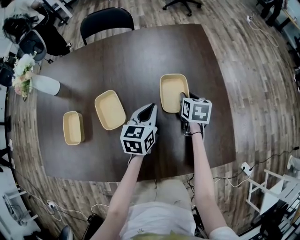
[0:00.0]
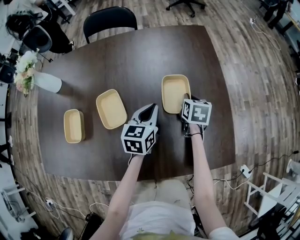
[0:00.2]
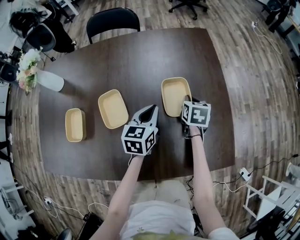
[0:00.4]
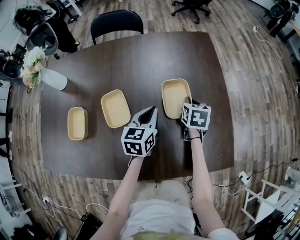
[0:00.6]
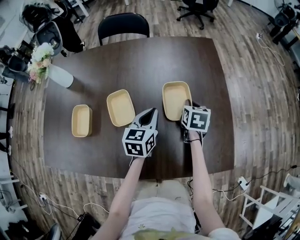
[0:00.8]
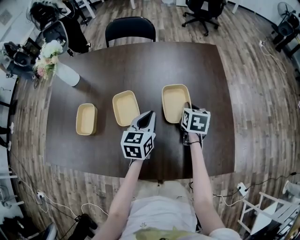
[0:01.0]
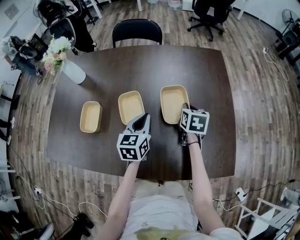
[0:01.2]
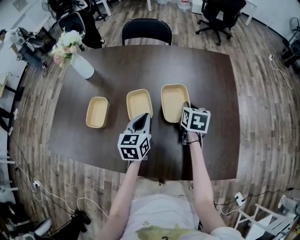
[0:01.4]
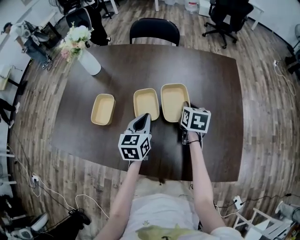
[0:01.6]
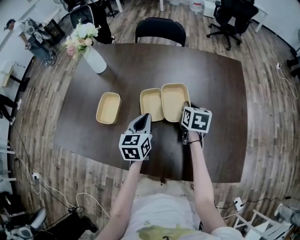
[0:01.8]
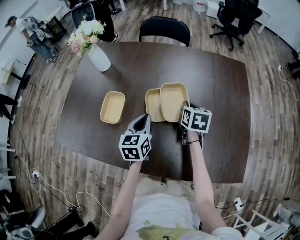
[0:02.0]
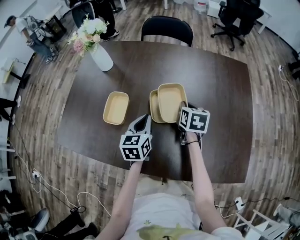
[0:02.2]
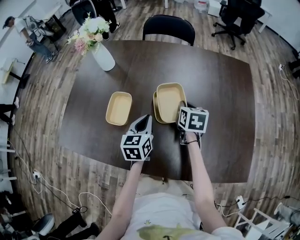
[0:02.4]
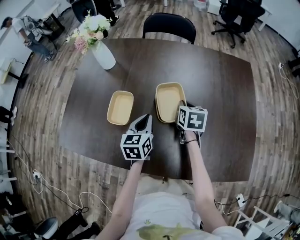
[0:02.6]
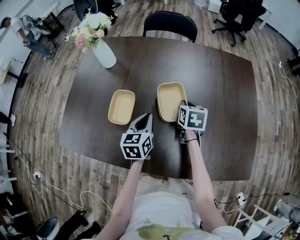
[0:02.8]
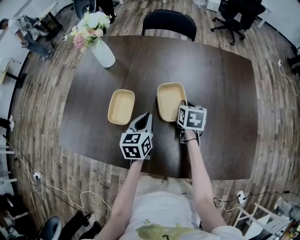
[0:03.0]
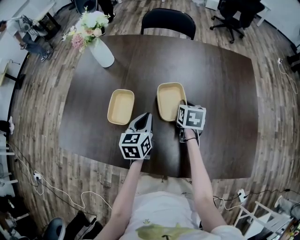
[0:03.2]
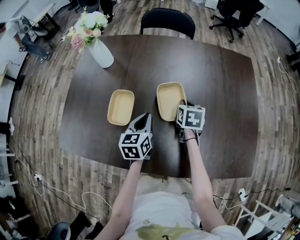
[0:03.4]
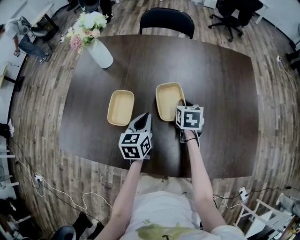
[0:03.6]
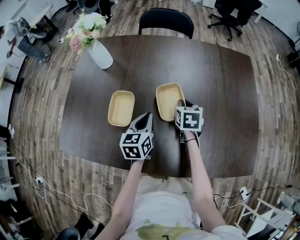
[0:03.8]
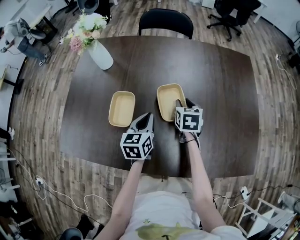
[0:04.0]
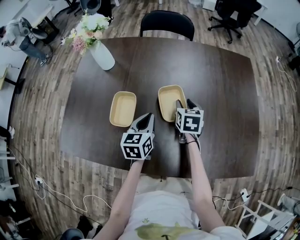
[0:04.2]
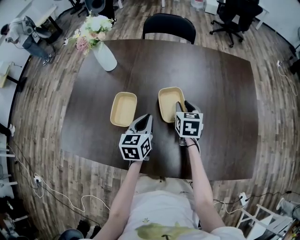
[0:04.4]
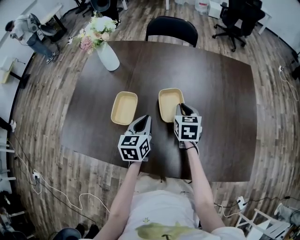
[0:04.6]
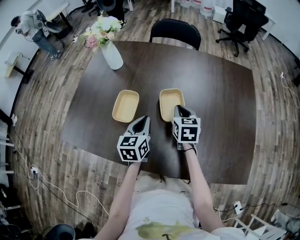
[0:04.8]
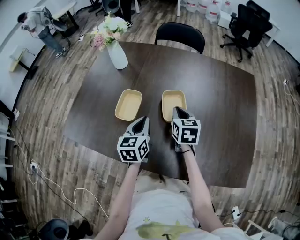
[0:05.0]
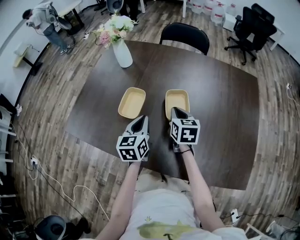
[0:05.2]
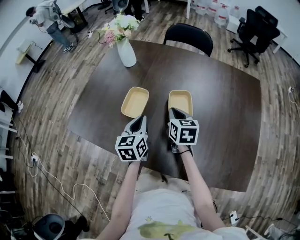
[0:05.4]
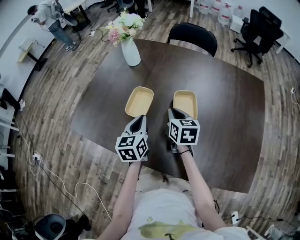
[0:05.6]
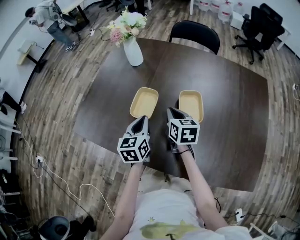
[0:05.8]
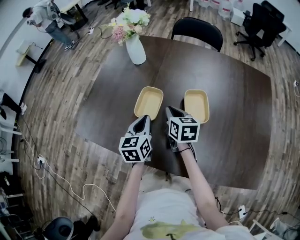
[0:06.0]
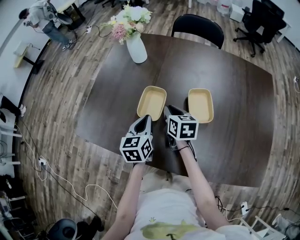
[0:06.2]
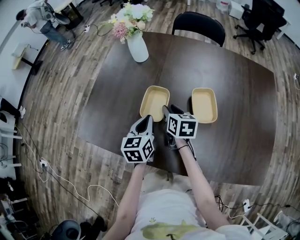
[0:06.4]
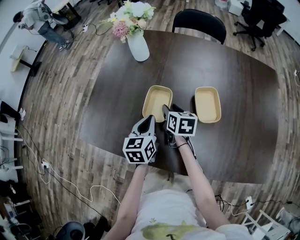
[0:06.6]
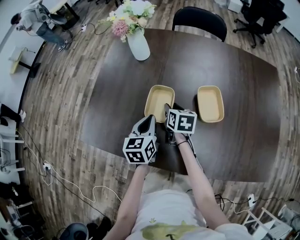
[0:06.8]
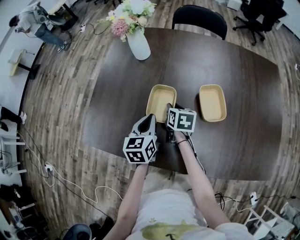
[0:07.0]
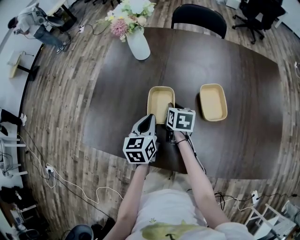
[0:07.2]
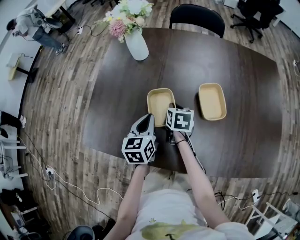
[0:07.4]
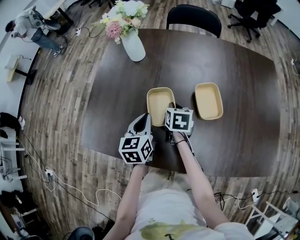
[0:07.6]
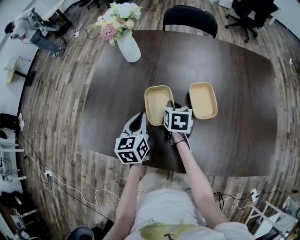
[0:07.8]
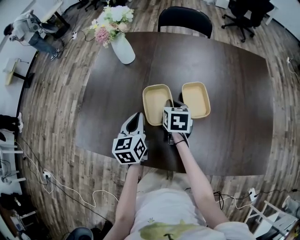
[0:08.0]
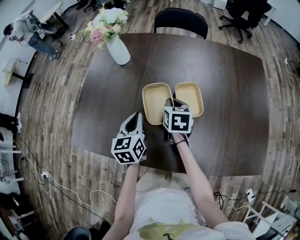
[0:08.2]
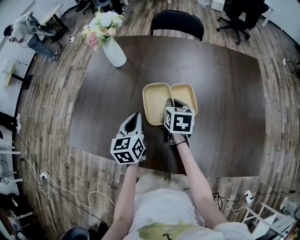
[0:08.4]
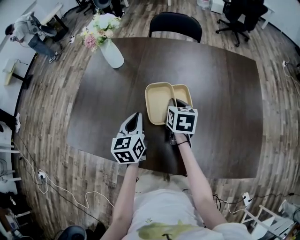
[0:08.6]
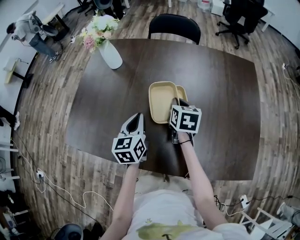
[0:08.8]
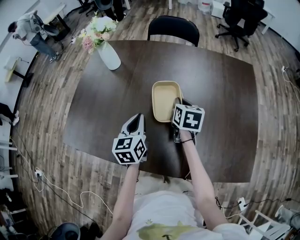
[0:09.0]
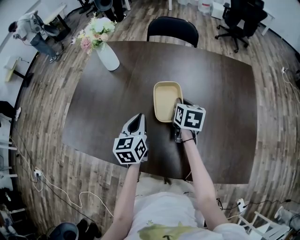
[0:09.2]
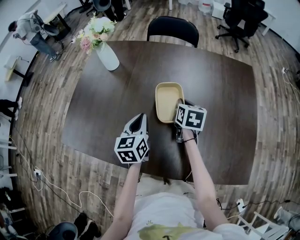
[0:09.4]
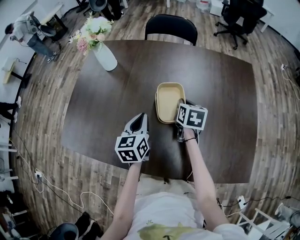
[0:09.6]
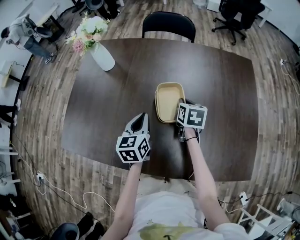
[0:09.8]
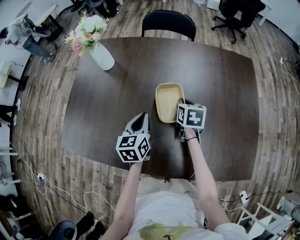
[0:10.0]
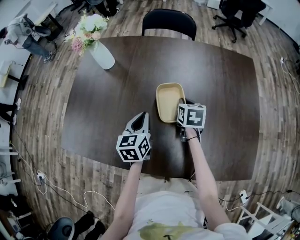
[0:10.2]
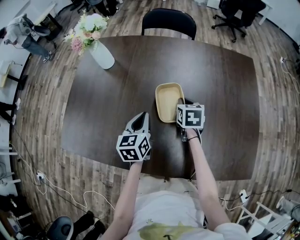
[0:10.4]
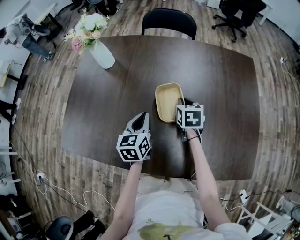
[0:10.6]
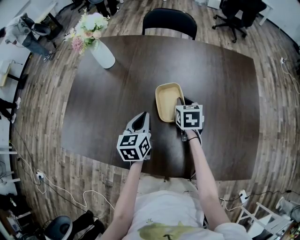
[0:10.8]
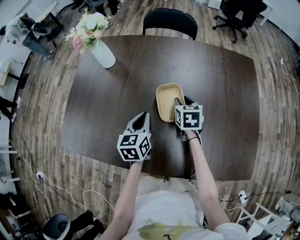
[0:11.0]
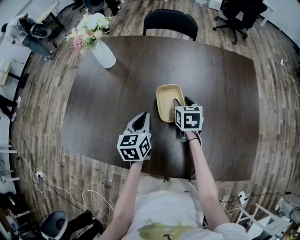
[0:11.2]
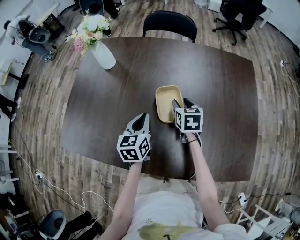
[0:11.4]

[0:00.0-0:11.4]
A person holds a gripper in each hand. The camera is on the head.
0:00.0 to 0:01.4: The left gripper travels to the left and backward by some 15 cm. The right gripper goes some 15 cm to the left and upward, and closes its fingers.
0:01.4 to 0:02.8: The two grippers go some 15 cm to the left.
0:02.8 to 0:04.2: The right gripper opens its fingers.
0:04.2 to 0:05.6: The right gripper moves to the left and upward, about 15 cm, turns by roughly 20 degrees, and closes up, while the left gripper heads to the left, covering about 10 cm.
0:05.6 to 0:07.2: The right gripper shifts some 15 cm downward, to the left and forward, and opens and closes again, while the left gripper heads to the left, covering some 5 cm.
0:07.2 to 0:08.6: The left gripper goes roughly 10 cm to the right, while the right gripper travels to the right and upward by some 15 cm.
0:08.6 to 0:10.0: The grippers both shift to the right by some 5 cm.
0:10.0 to 0:11.4: The right gripper opens.

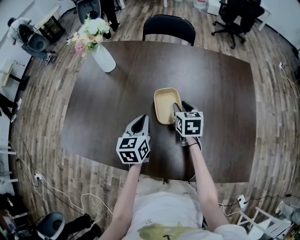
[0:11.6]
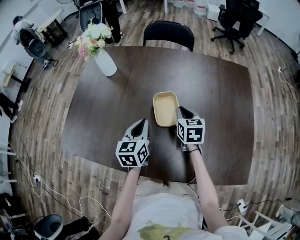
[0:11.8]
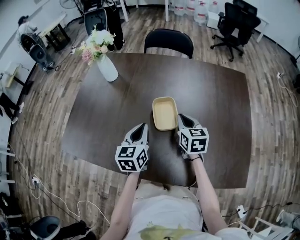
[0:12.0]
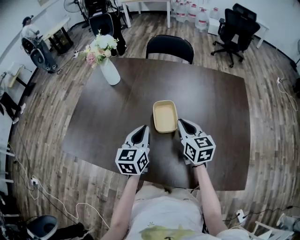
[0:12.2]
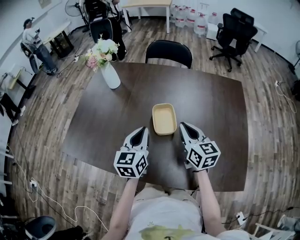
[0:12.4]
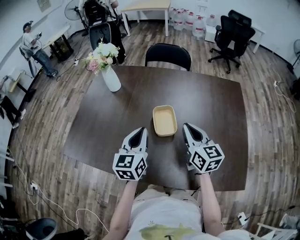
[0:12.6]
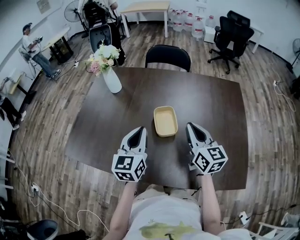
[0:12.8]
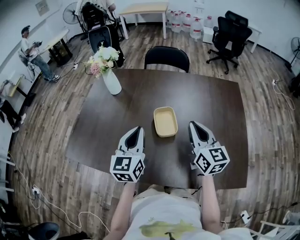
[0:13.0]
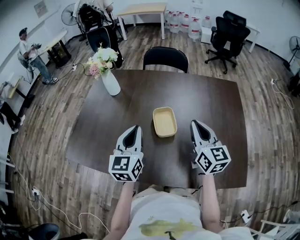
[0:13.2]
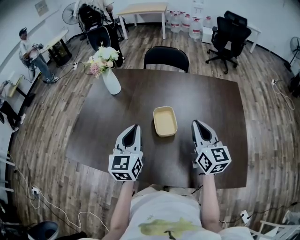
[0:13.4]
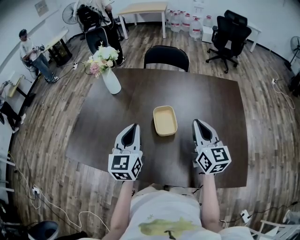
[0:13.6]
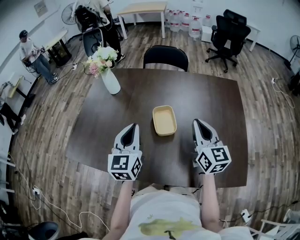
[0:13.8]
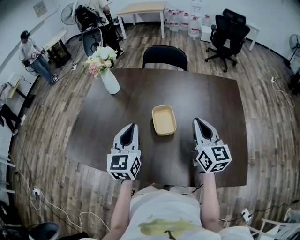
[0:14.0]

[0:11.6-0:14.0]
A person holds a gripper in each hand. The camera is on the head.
0:11.6 to 0:12.8: The left gripper travels upward by roughly 15 cm, while the right gripper shifts some 20 cm upward and backward, points its fingers roughly 30 degrees further upward, and closes its fingers.
0:12.8 to 0:14.0: There are only small adjustments of the grippers.

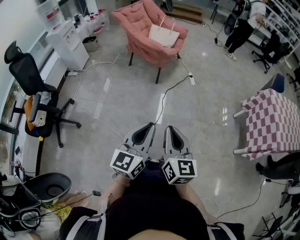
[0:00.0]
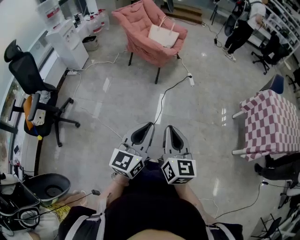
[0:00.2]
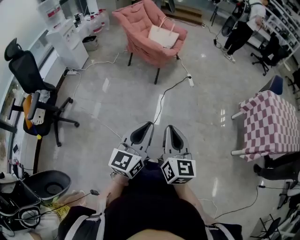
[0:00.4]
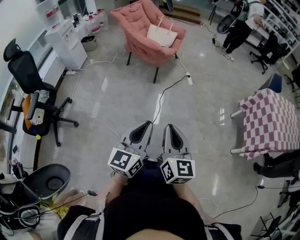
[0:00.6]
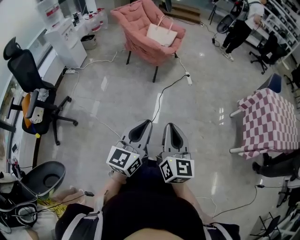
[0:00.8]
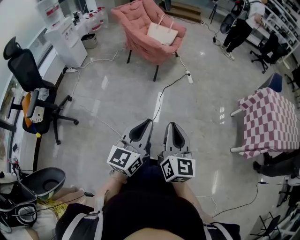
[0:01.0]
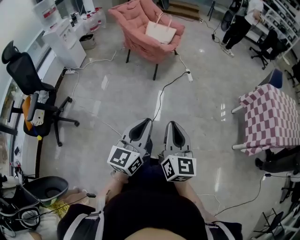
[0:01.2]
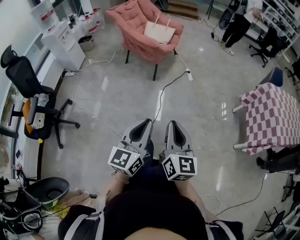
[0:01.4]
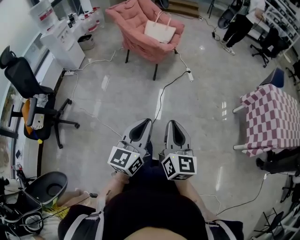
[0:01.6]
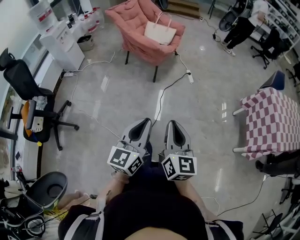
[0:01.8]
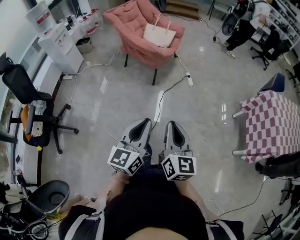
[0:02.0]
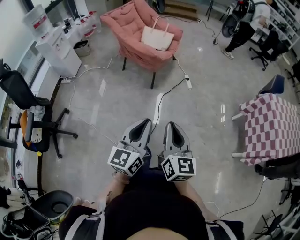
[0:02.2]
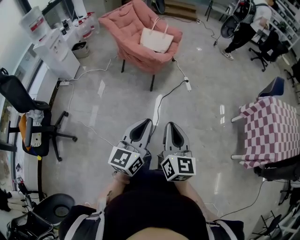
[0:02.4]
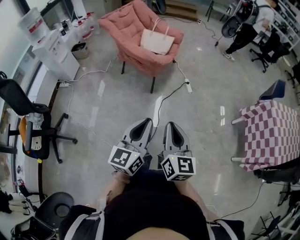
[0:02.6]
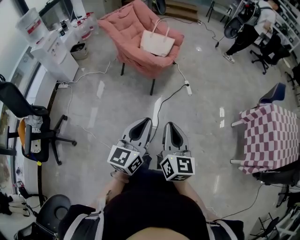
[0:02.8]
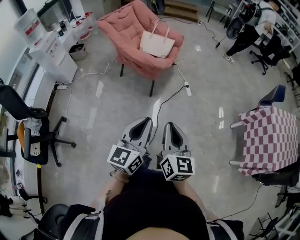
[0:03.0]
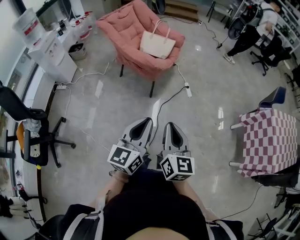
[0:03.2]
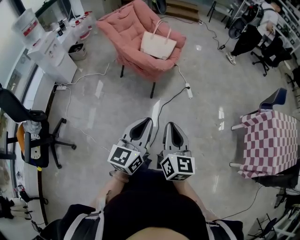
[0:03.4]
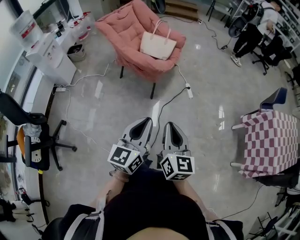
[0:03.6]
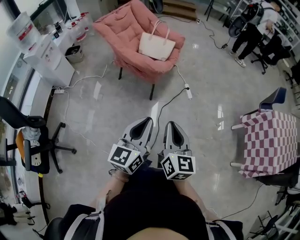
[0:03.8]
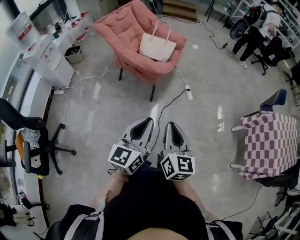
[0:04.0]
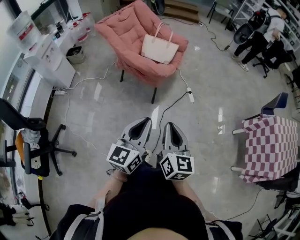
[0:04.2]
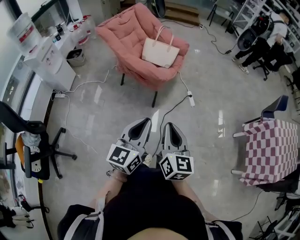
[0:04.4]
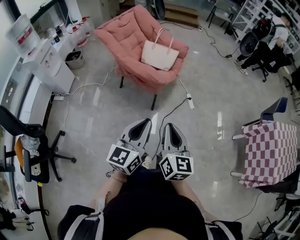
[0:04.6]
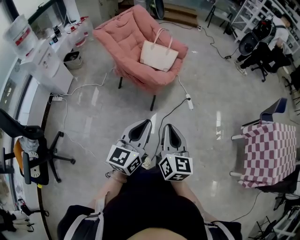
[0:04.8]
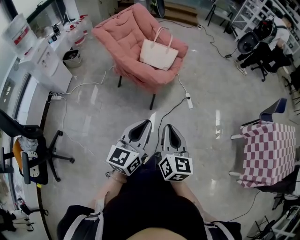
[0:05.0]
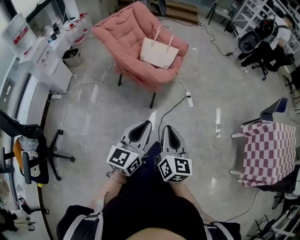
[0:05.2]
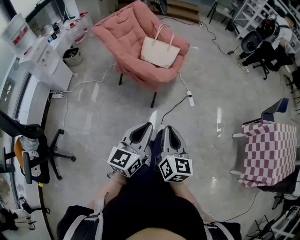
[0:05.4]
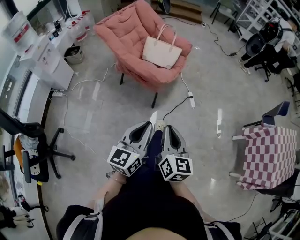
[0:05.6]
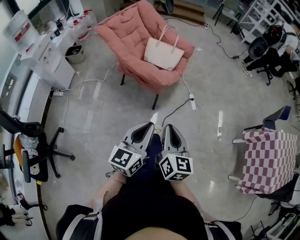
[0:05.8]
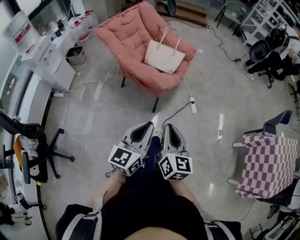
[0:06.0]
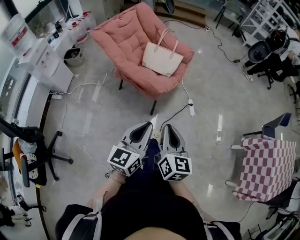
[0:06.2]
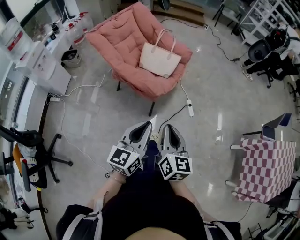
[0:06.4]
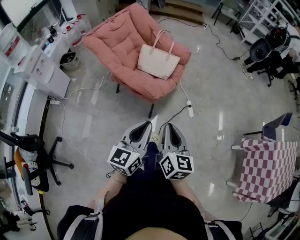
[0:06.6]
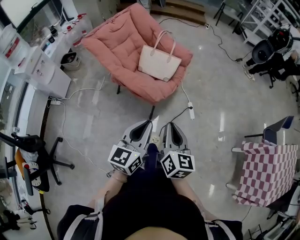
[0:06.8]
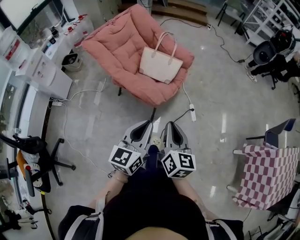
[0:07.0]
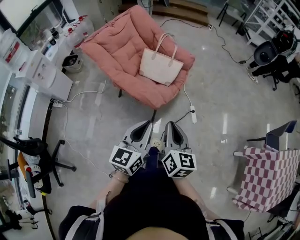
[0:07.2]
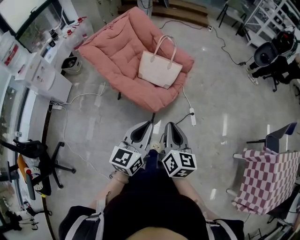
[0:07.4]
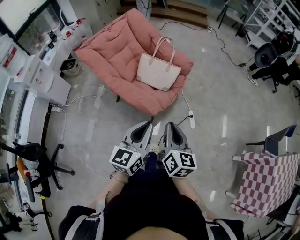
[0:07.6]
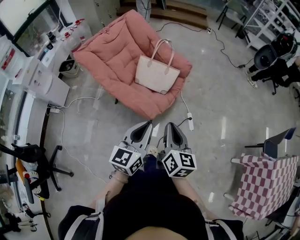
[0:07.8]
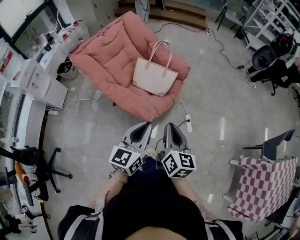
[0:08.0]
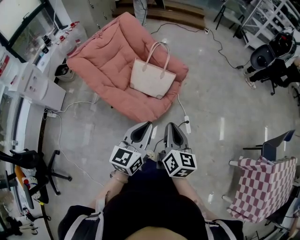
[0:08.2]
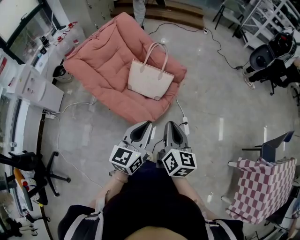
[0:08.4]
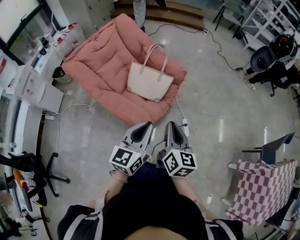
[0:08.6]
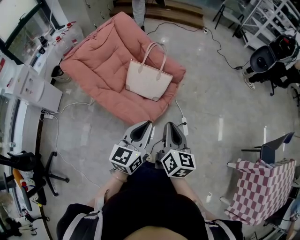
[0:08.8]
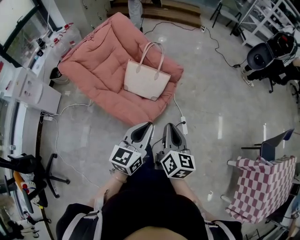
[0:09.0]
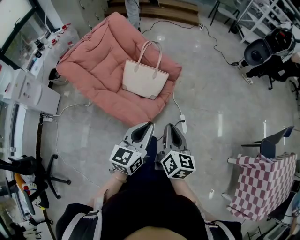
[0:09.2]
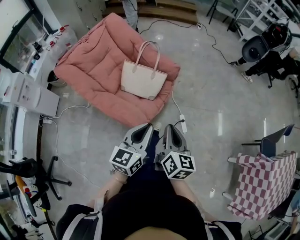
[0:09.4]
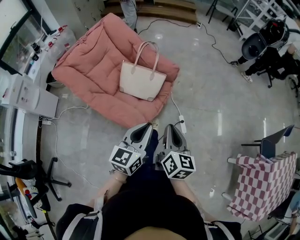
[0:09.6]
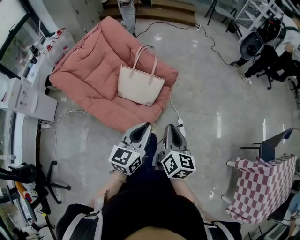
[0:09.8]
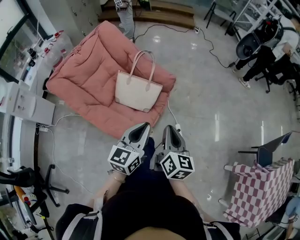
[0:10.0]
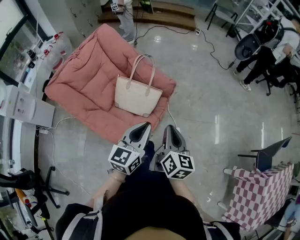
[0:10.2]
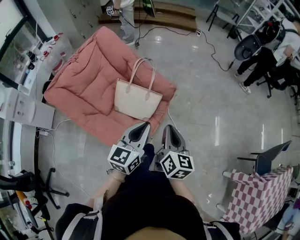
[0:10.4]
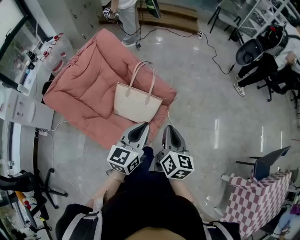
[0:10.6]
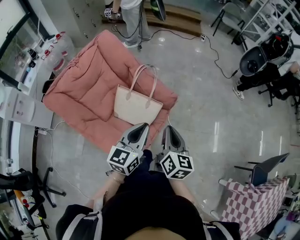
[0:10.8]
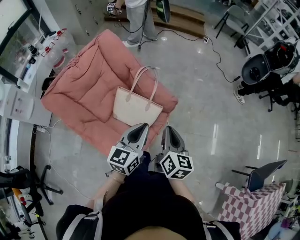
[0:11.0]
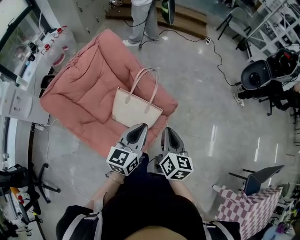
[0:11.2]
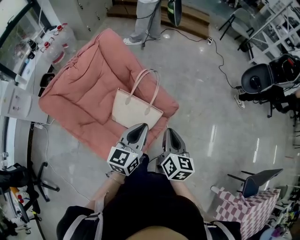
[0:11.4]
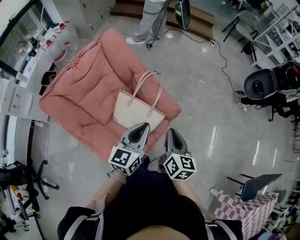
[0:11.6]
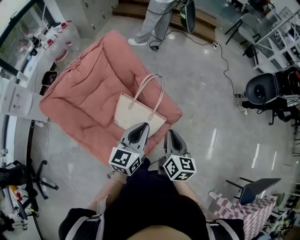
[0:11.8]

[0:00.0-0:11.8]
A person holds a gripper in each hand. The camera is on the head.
0:00.0 to 0:01.4: The grippers make only small movements.
0:01.4 to 0:03.0: Both grippers travel together forward, about 25 cm.
0:03.0 to 0:04.4: The grippers both shift forward and to the left by some 15 cm.
0:04.4 to 0:06.0: The grippers both shift forward by about 10 cm.
0:06.0 to 0:07.4: Both grippers move forward, roughly 20 cm.
0:07.4 to 0:08.8: Both grippers travel together forward, approximately 15 cm.
0:08.8 to 0:10.4: Both grippers travel together forward, about 20 cm.
0:10.4 to 0:11.8: The grippers both shift forward by roughly 20 cm.
